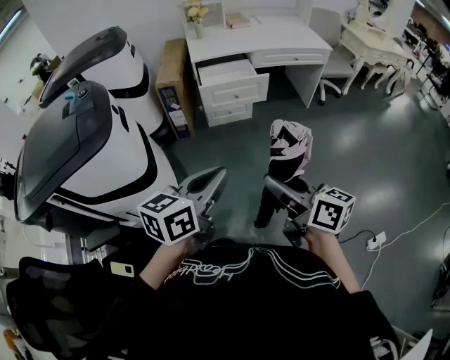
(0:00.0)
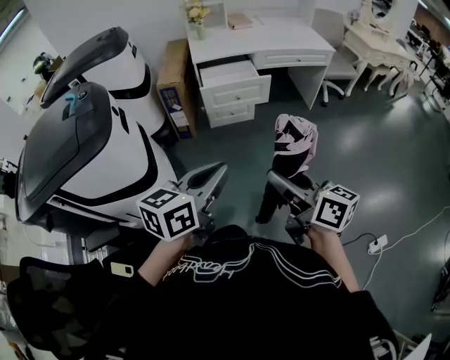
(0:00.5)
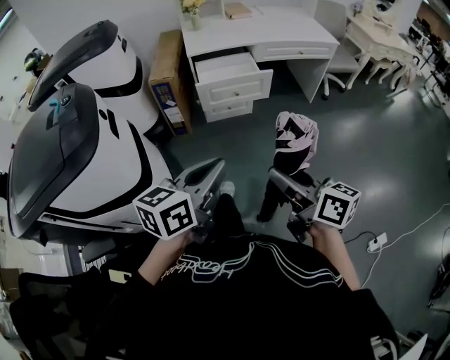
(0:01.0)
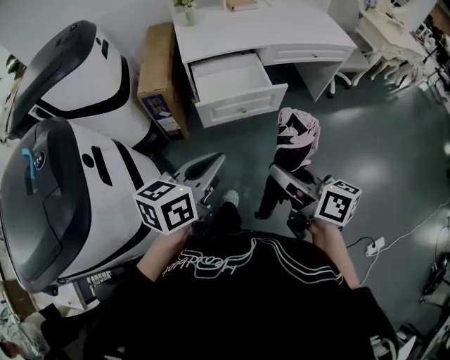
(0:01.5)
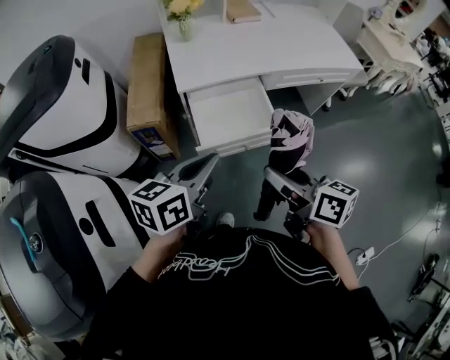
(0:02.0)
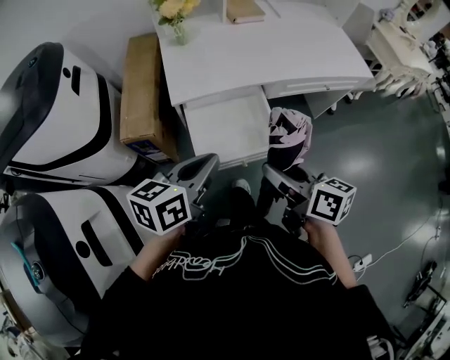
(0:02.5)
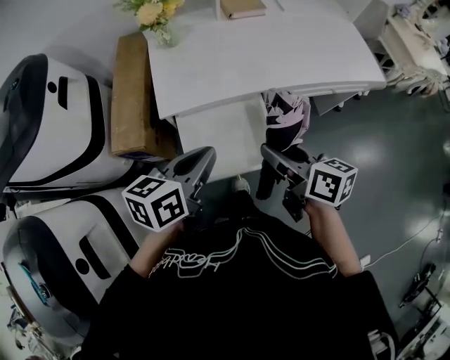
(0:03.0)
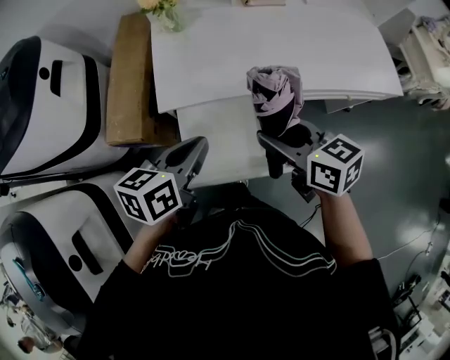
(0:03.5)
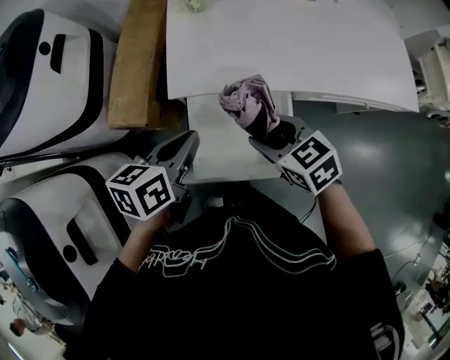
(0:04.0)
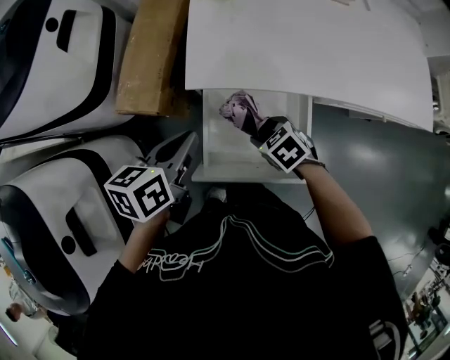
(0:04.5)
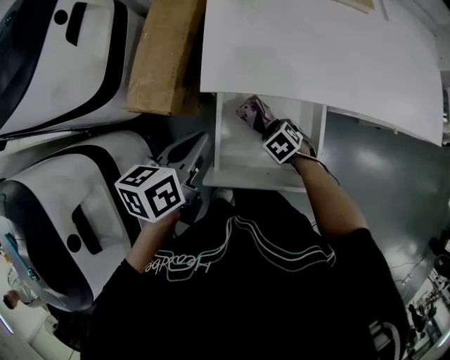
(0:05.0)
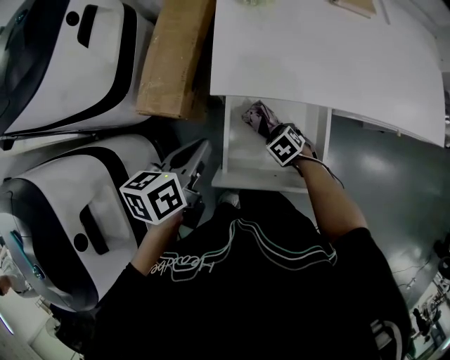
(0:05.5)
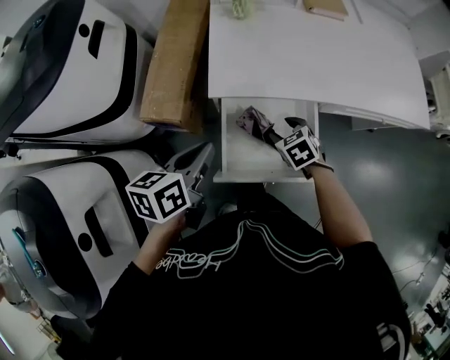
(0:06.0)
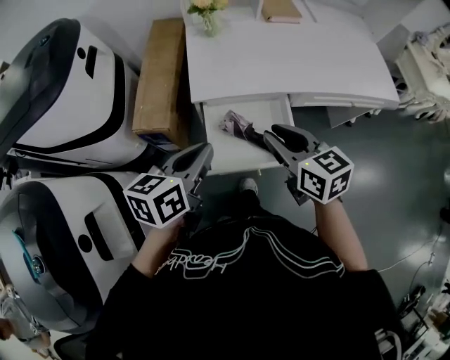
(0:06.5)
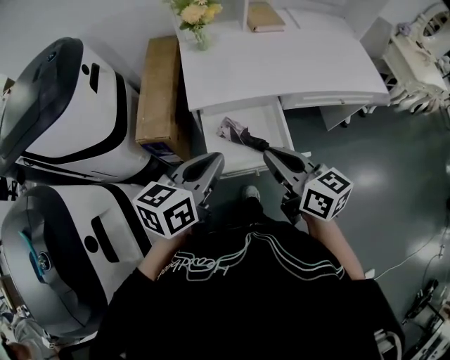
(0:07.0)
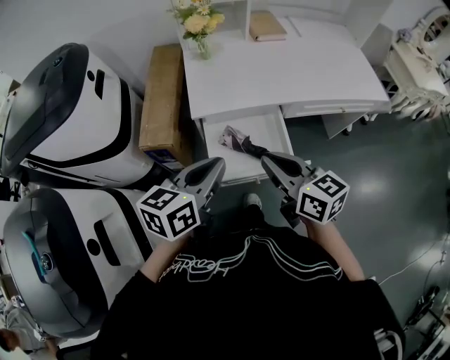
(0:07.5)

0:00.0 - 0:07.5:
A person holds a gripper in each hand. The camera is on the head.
0:00.0 - 0:02.0: The two grippers travel together, forward, approximately 60 cm.
0:02.0 - 0:04.0: The grippers both shift forward and downward by approximately 35 cm. The left gripper rotates approximately 20 degrees, while the right gripper changes its angle by some 50 degrees.
0:04.0 - 0:05.5: The left gripper changes place by about 10 cm. The right gripper moves downward, about 25 cm, and tips its fingers downward by approximately 30 degrees.
0:05.5 - 0:07.5: The right gripper goes some 40 cm upward, tilts its fingers roughly 60 degrees upward, and closes; the left gripper ends up about 25 cm from where it was, and turns by approximately 30 degrees.

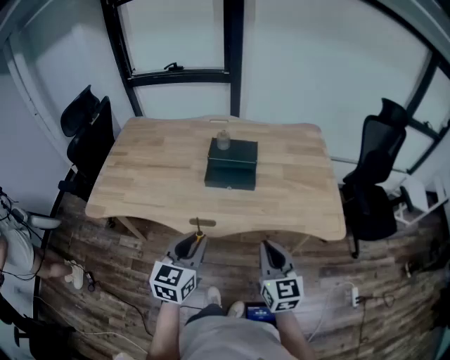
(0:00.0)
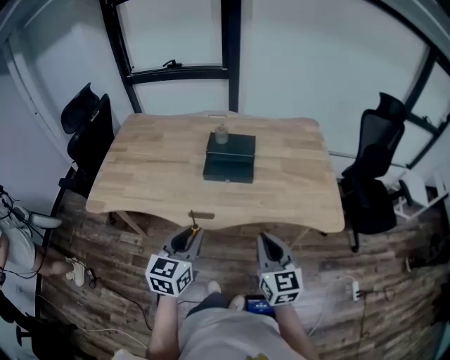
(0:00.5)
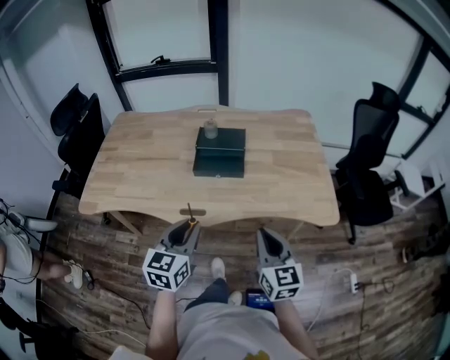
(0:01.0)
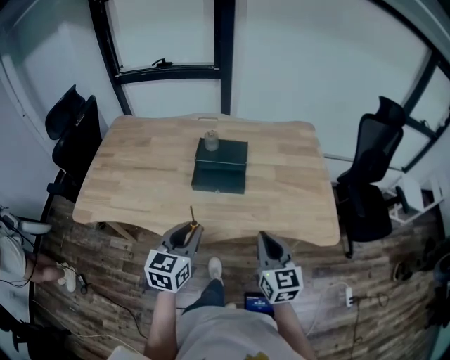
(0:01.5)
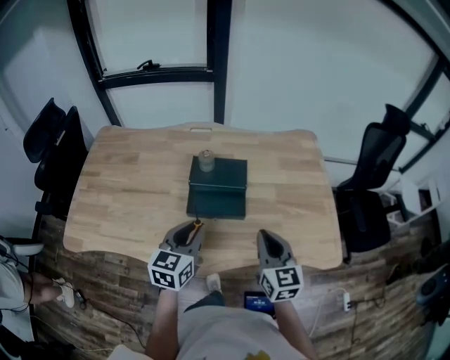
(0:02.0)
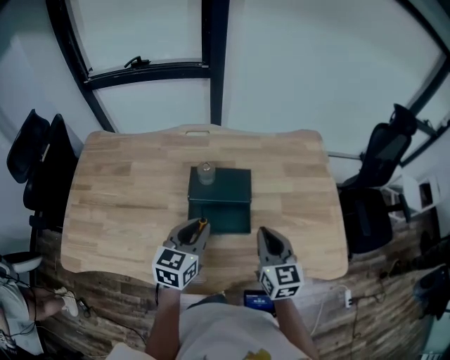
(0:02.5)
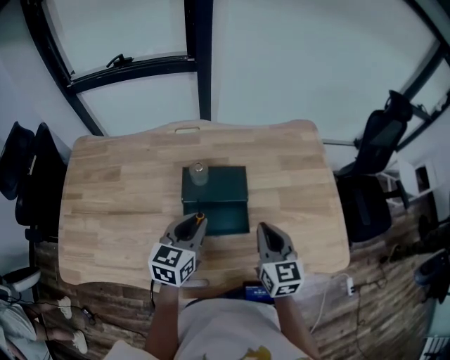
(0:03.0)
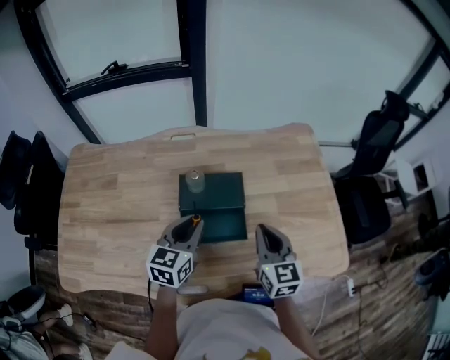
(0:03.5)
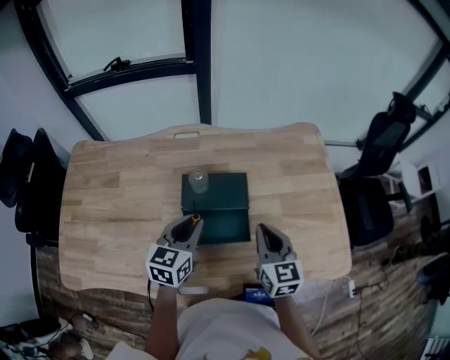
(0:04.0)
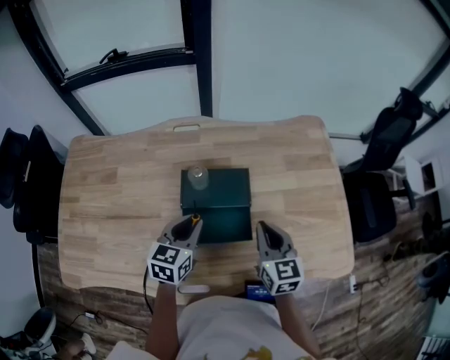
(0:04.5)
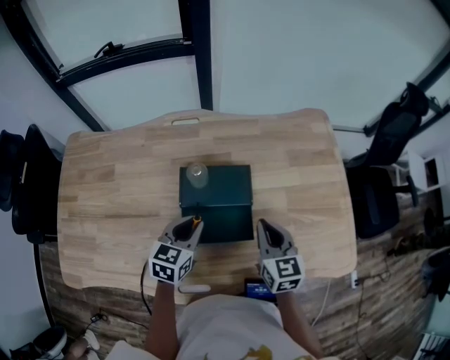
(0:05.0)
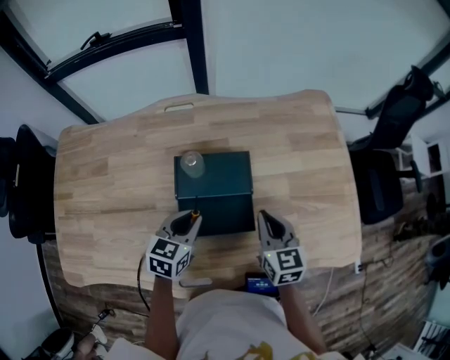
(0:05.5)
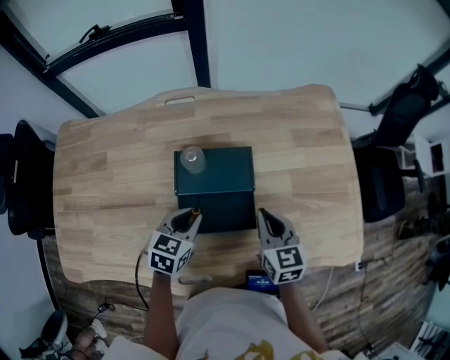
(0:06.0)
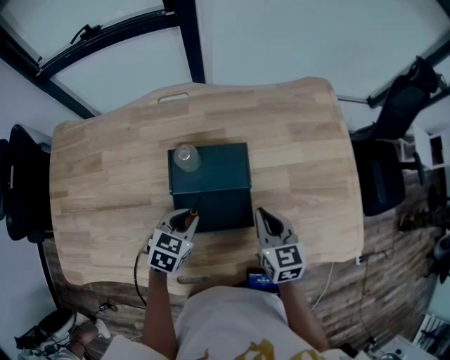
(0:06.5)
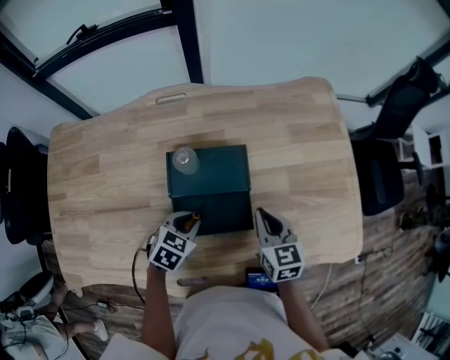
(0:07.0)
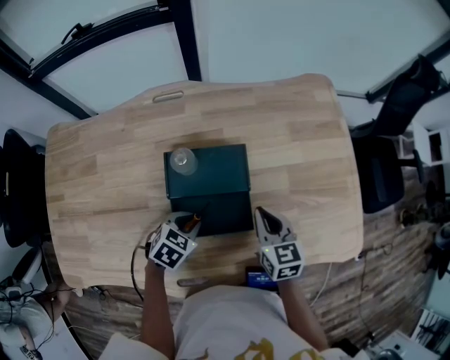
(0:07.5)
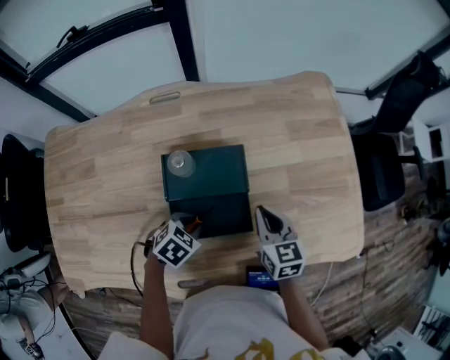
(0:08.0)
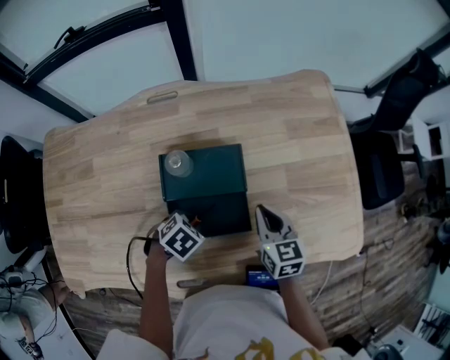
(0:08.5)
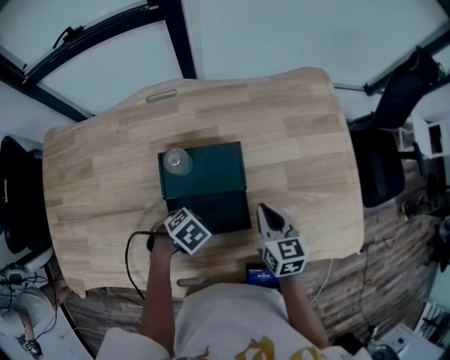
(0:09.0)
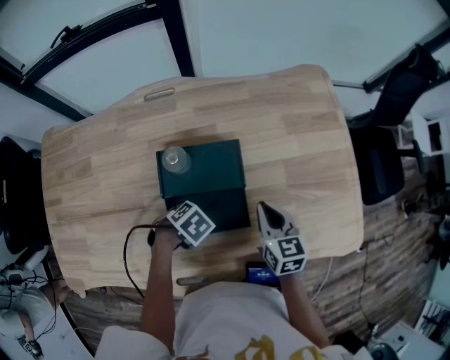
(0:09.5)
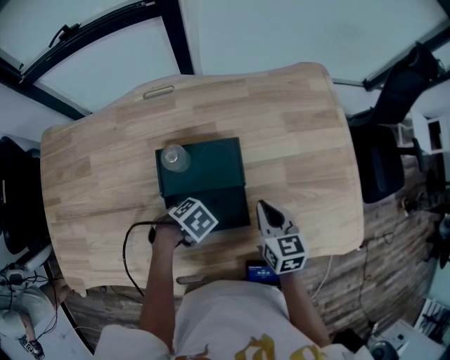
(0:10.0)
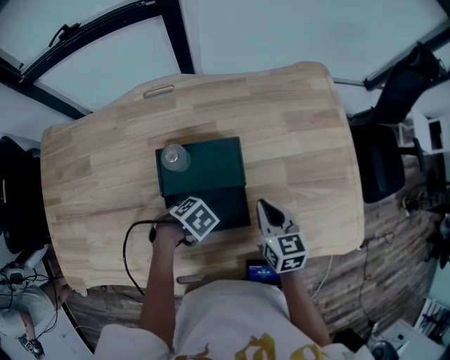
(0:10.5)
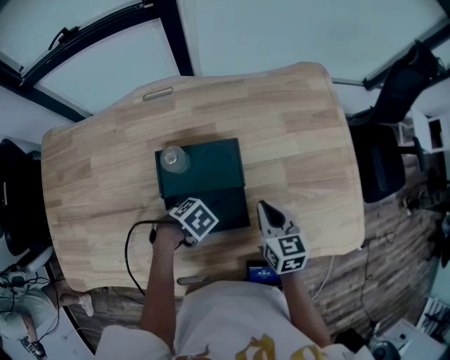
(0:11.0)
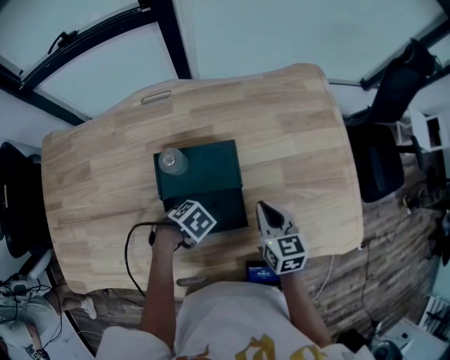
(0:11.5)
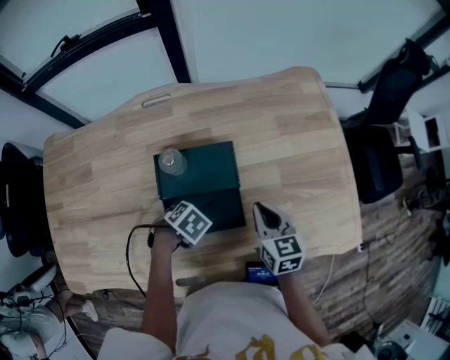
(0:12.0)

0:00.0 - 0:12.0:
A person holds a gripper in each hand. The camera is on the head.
0:00.0 - 0:02.0: The grippers both shift forward by some 20 cm.
0:02.0 - 0:04.0: Both grippers move forward, approximately 15 cm.
0:04.0 - 0:06.0: Both grippers move downward, about 10 cm. The left gripper changes its angle by approximately 20 degrees.
0:06.0 - 0:08.0: The left gripper heads downward, covering approximately 5 cm, and swivels about 30 degrees.
0:08.0 - 0:10.0: The left gripper swivels some 30 degrees.
0:10.0 - 0:12.0: The grippers stay close to where they were, moving slightly.

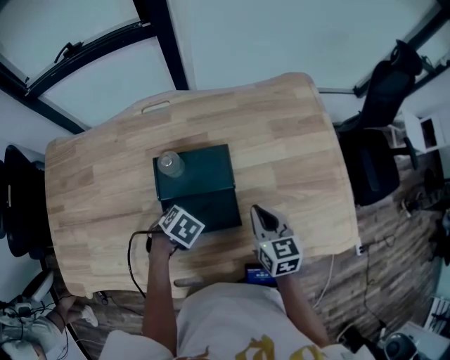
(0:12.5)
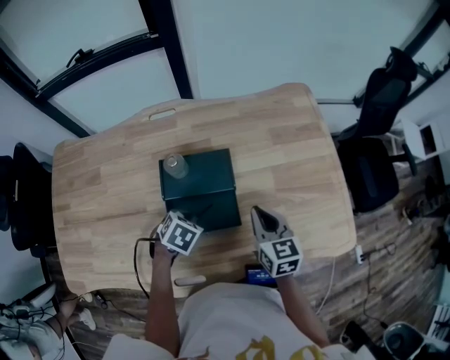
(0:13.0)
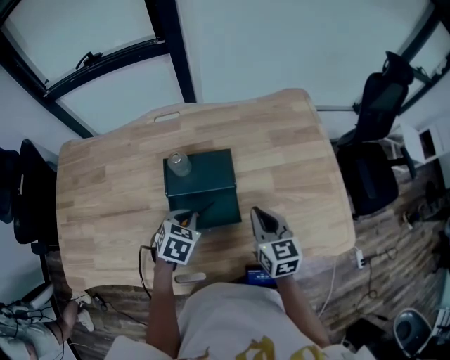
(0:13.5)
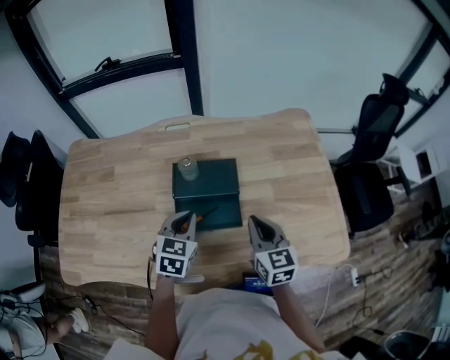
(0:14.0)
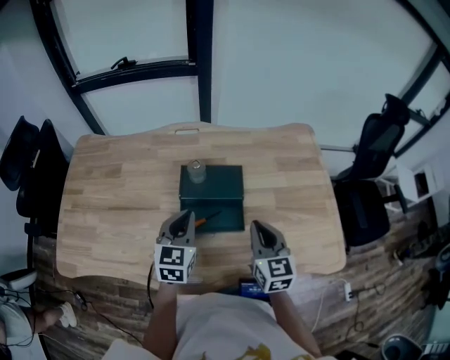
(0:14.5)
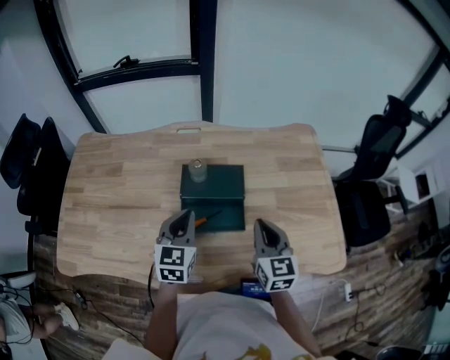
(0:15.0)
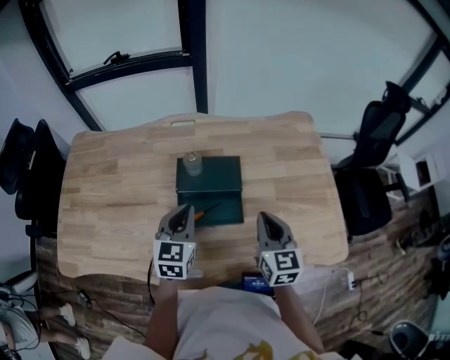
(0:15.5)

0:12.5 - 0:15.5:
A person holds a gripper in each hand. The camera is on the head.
0:12.5 - 0:14.0: The left gripper travels upward by roughly 15 cm, and tilts its fingers approximately 40 degrees upward; the right gripper shifts some 5 cm upward.
0:14.0 - 0:15.5: The grippers stay close to where they were, moving slightly.

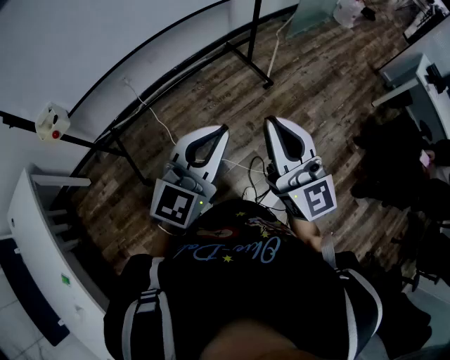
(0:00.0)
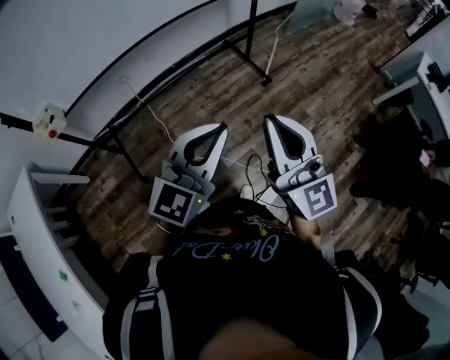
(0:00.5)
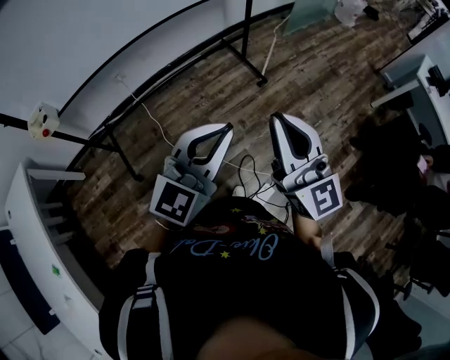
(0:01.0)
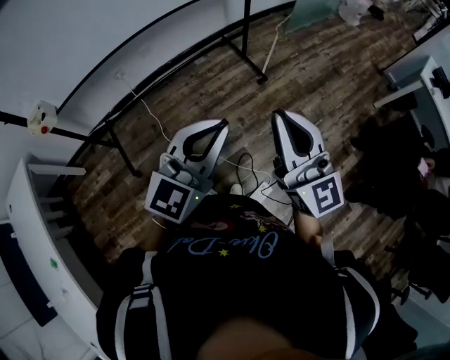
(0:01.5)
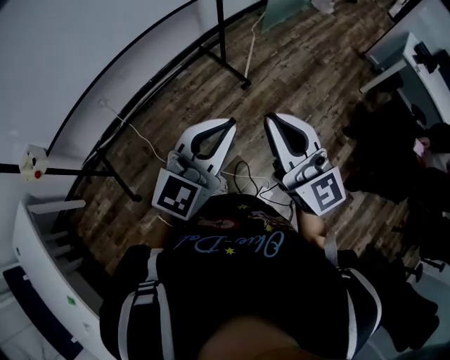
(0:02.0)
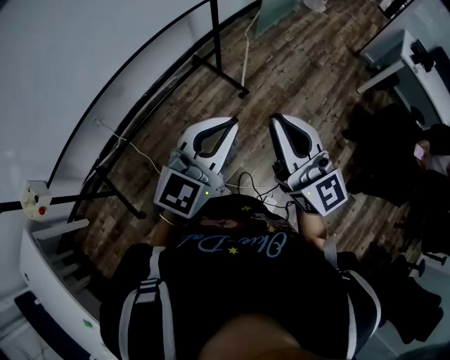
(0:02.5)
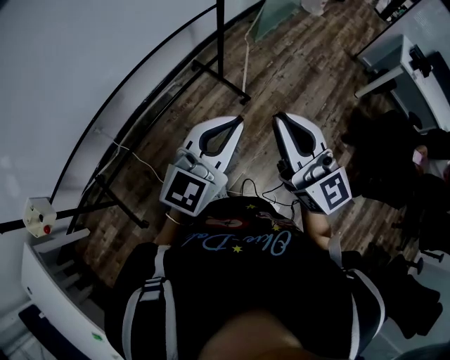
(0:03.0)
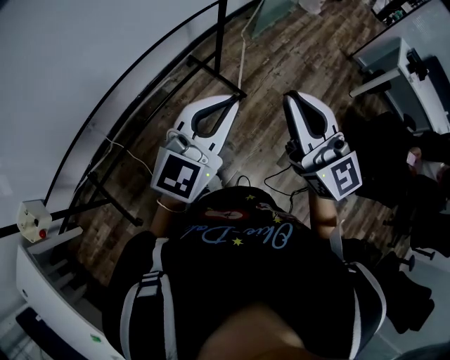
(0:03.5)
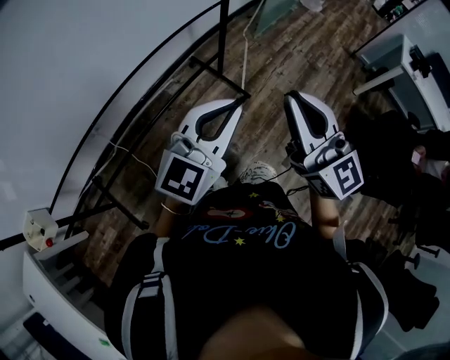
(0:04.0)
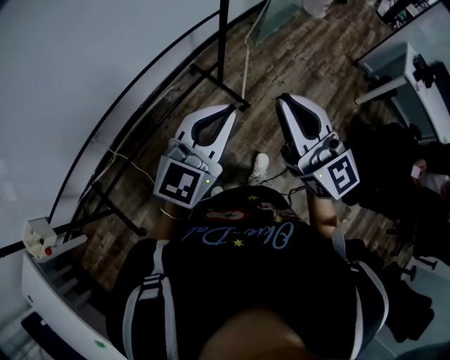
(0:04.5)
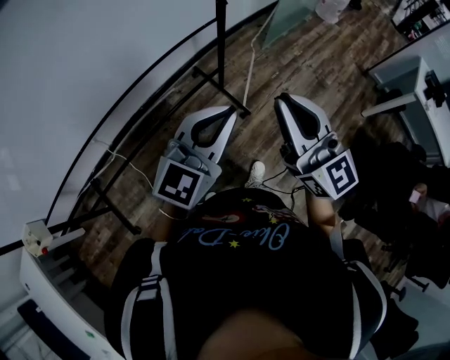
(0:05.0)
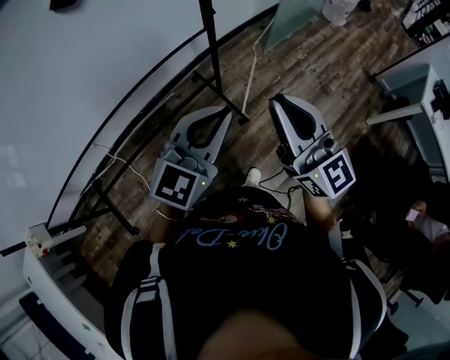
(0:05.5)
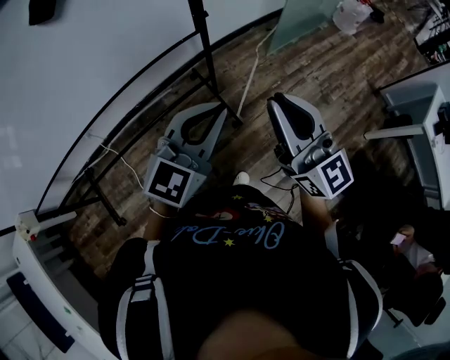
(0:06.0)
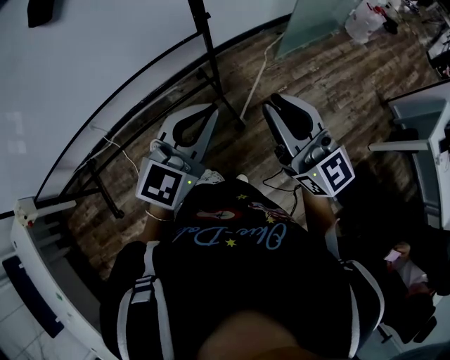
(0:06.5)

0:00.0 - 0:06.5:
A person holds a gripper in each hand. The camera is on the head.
0:00.0 - 0:02.0: Both grippers move to the right and forward, some 15 cm.
0:02.0 - 0:04.5: Both grippers travel together forward, roughly 20 cm.
0:04.5 - 0:06.5: The left gripper heads to the right and forward, covering about 25 cm, while the right gripper travels forward and to the right by roughly 25 cm, and swivels some 20 degrees.
